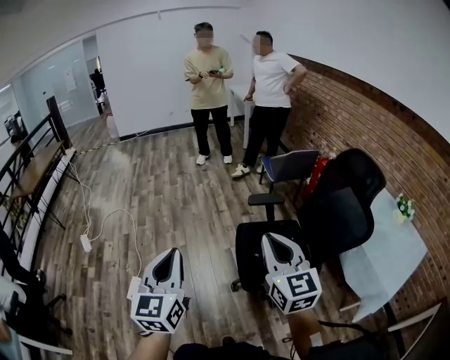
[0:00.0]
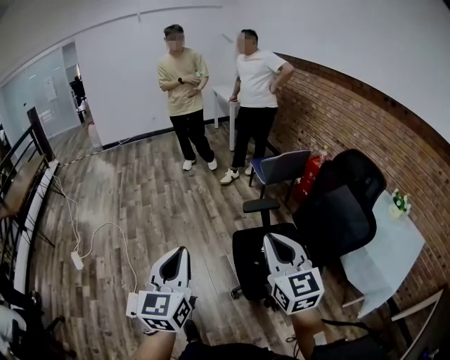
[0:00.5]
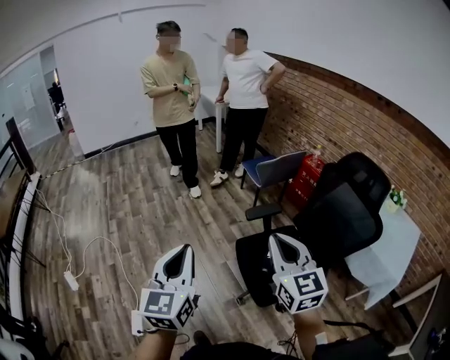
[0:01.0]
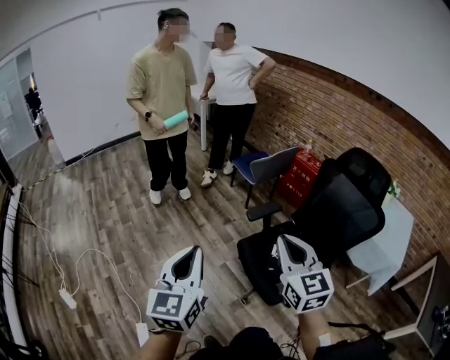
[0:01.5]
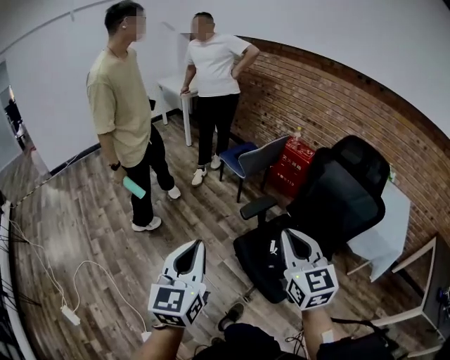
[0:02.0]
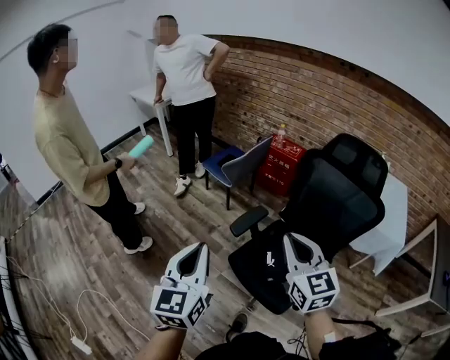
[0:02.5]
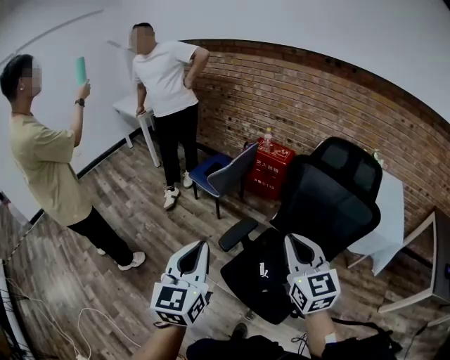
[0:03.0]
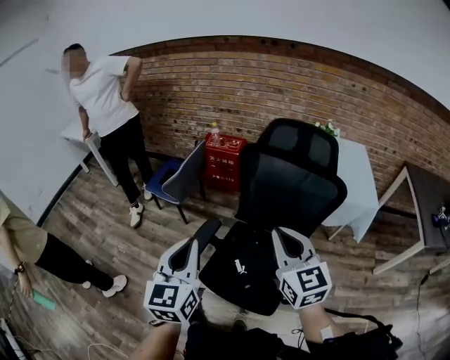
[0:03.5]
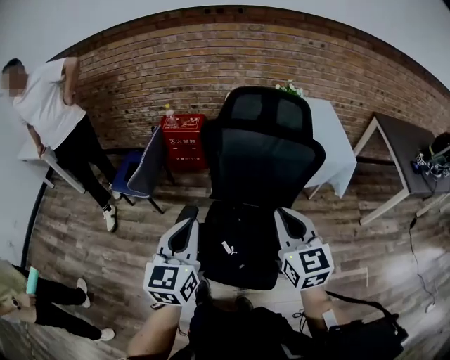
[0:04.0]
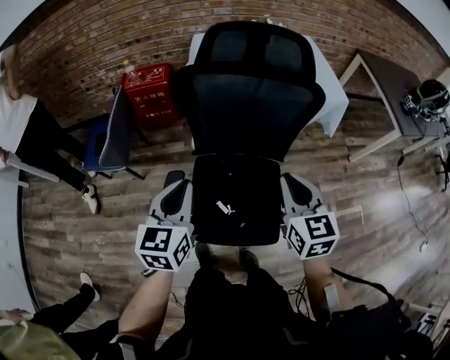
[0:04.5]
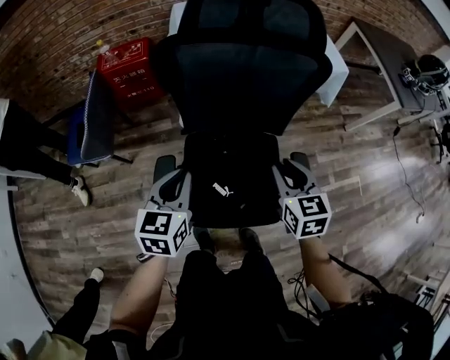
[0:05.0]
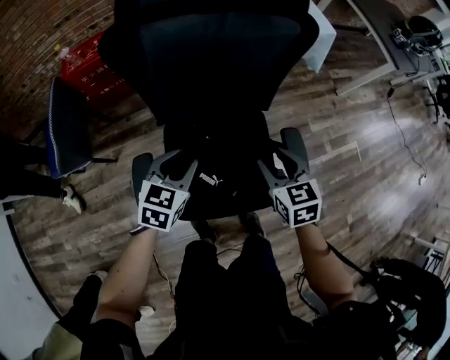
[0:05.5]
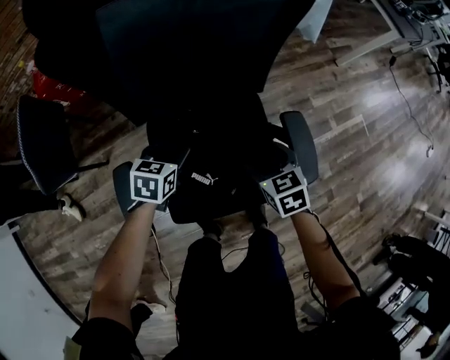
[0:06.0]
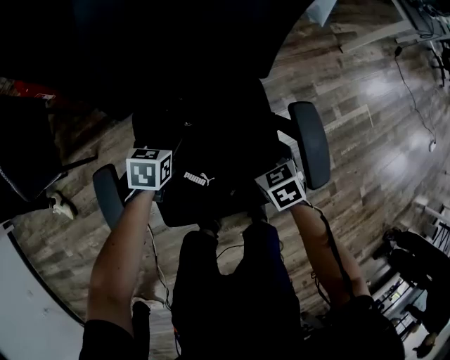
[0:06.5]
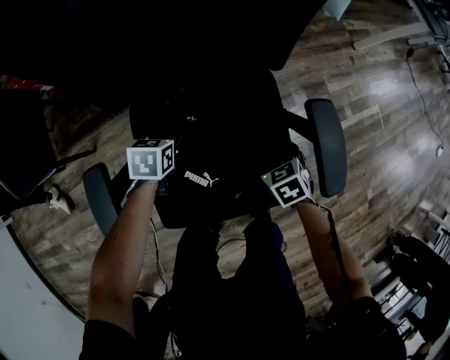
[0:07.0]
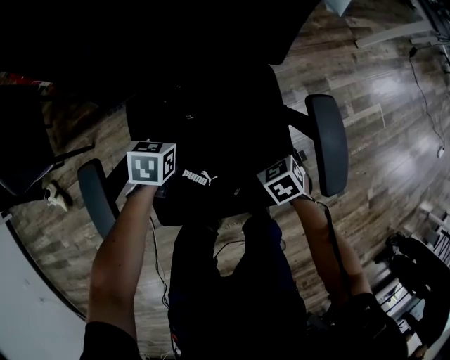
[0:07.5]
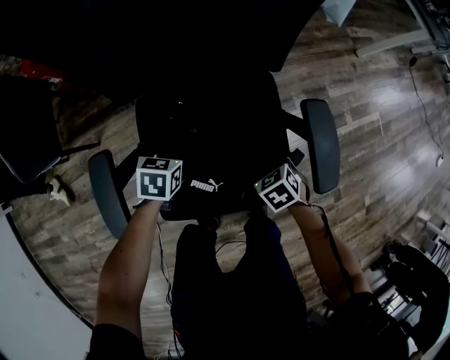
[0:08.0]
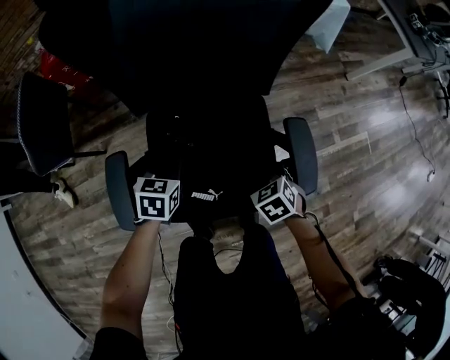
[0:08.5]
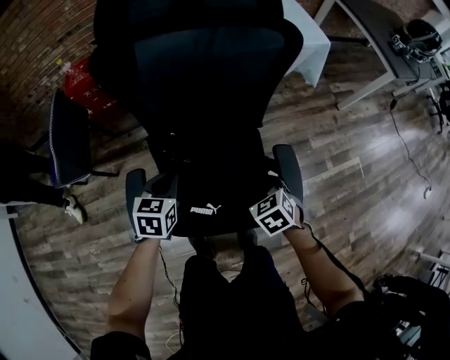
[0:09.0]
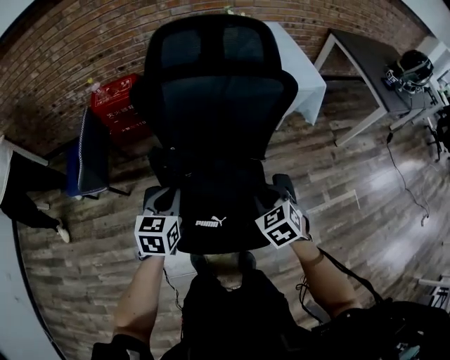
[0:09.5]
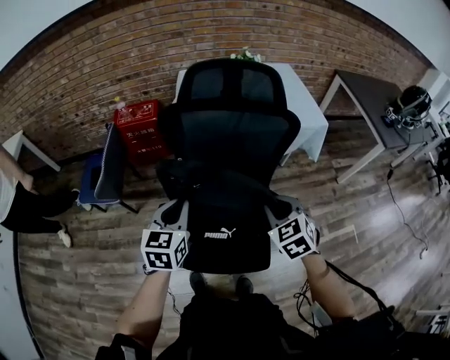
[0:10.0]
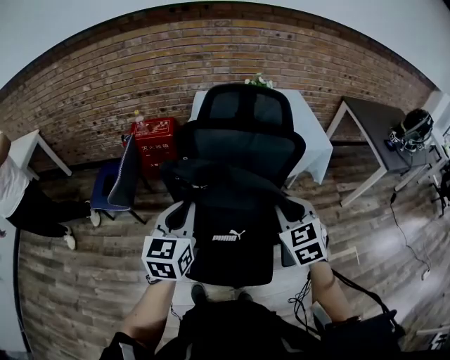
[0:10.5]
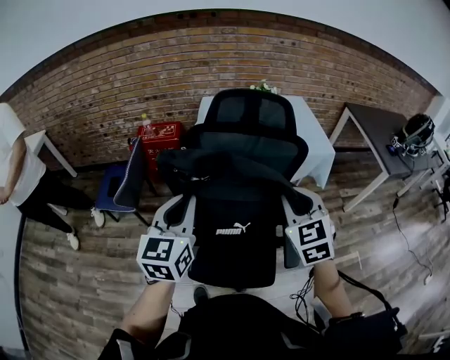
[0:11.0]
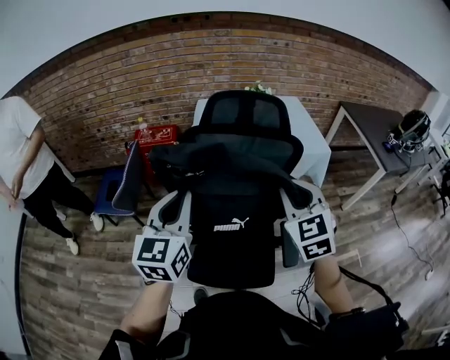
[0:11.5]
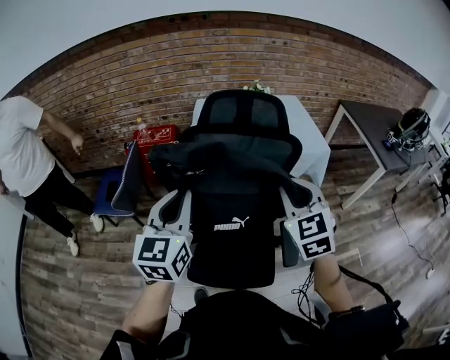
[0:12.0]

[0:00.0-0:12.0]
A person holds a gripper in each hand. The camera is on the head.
0:00.0 to 0:02.0: The left gripper shifts by about 30 cm, and turns by about 30 degrees. The right gripper changes place by about 20 cm, and swivels some 30 degrees.
0:02.0 to 0:04.0: The right gripper changes place by roughly 25 cm, and swivels about 40 degrees. Meanwhile the left gripper moves roughly 40 cm, and turns by approximately 40 degrees.
0:04.0 to 0:06.0: Both grippers travel together downward, some 40 cm. The left gripper tips its fingers downward by some 40 degrees, and opens its fingers. The right gripper angles its fingers downward, by roughly 40 degrees, and opens up.
0:06.0 to 0:08.0: The left gripper is displaced downward by some 10 cm, and closes its fingers, while the right gripper travels downward by some 20 cm, changes its angle by approximately 20 degrees, and closes its fingers.
0:08.0 to 0:10.0: The two grippers go approximately 40 cm upward. The left gripper tilts its fingers about 40 degrees upward; the right gripper turns by roughly 40 degrees.
0:10.0 to 0:12.0: The two grippers go some 20 cm upward. The right gripper turns by roughly 20 degrees. The left gripper swivels roughly 20 degrees.

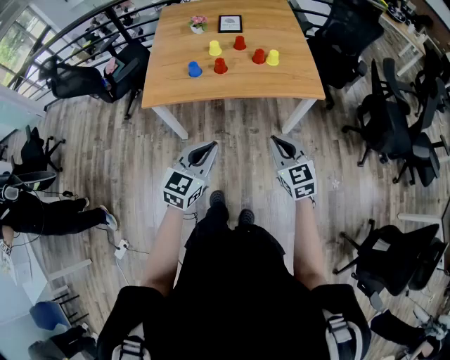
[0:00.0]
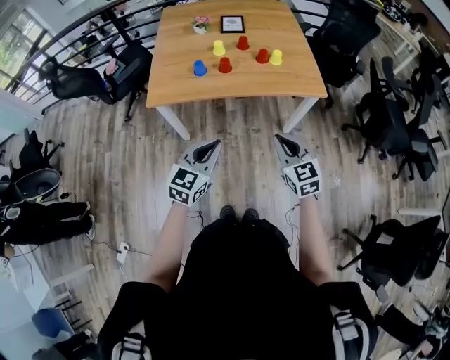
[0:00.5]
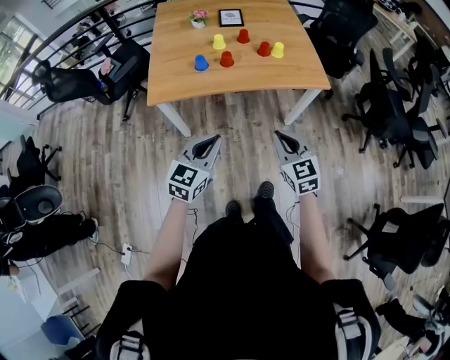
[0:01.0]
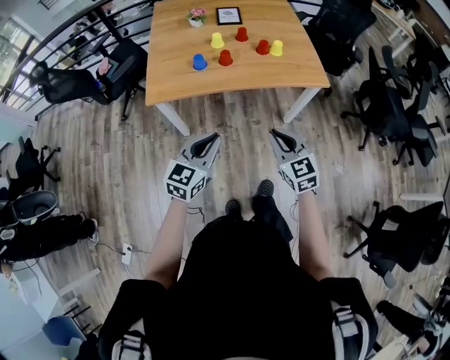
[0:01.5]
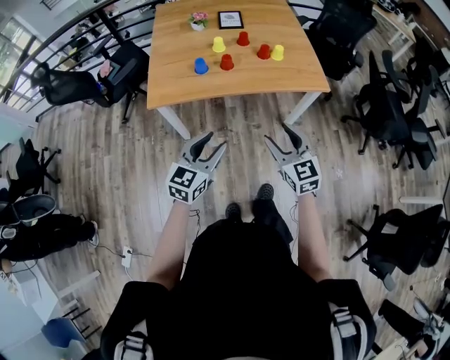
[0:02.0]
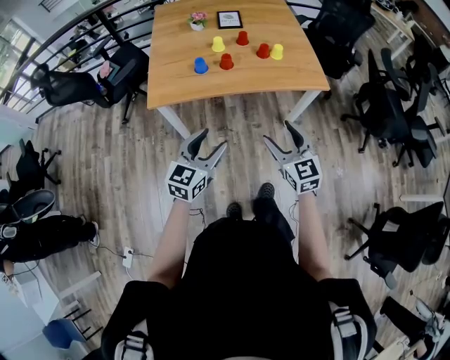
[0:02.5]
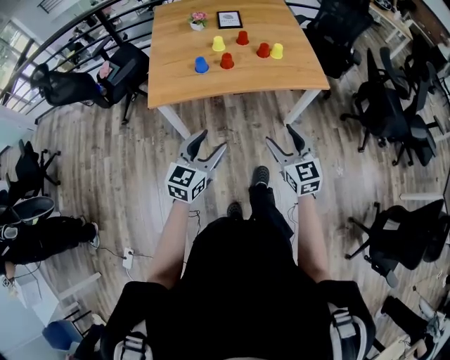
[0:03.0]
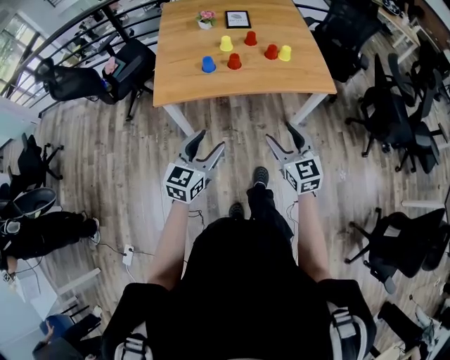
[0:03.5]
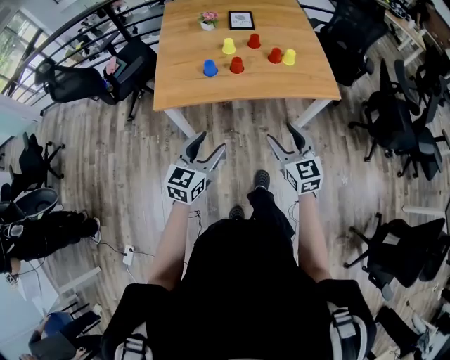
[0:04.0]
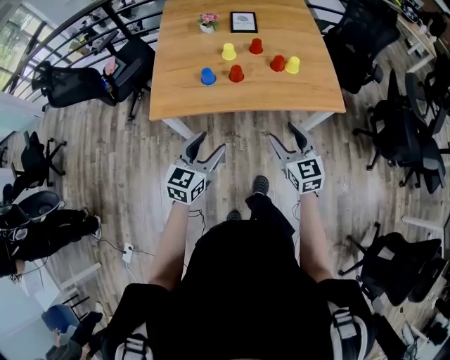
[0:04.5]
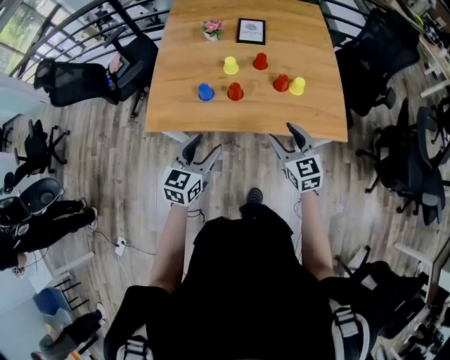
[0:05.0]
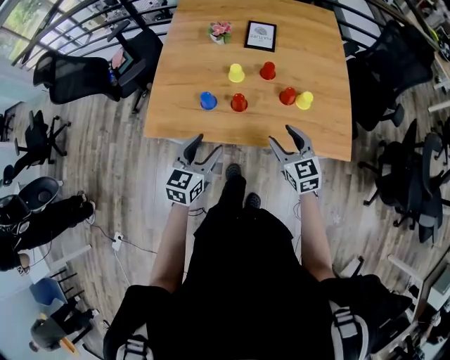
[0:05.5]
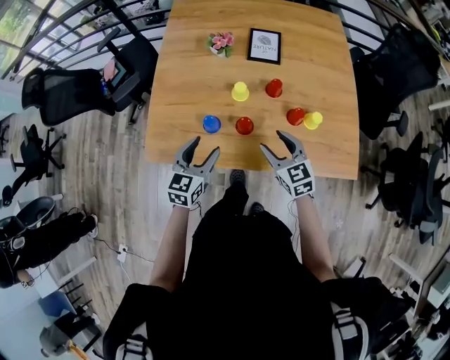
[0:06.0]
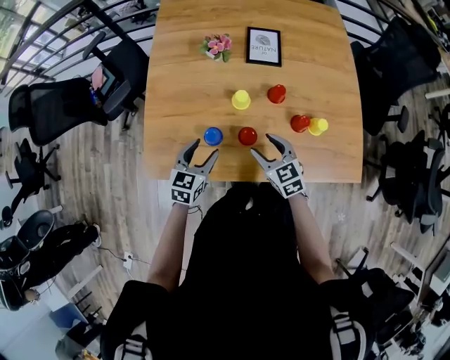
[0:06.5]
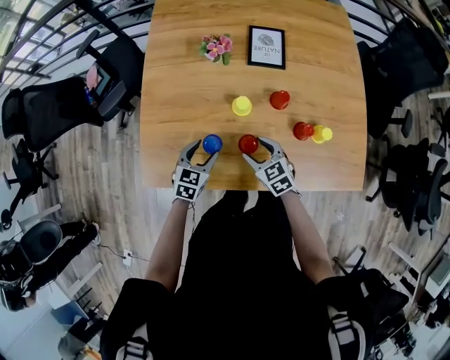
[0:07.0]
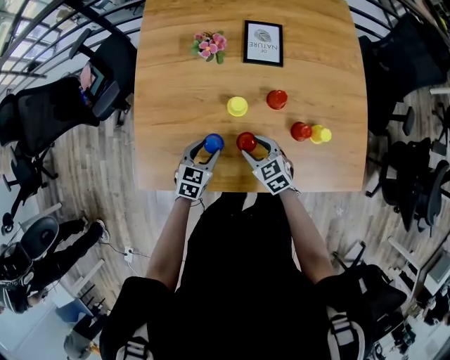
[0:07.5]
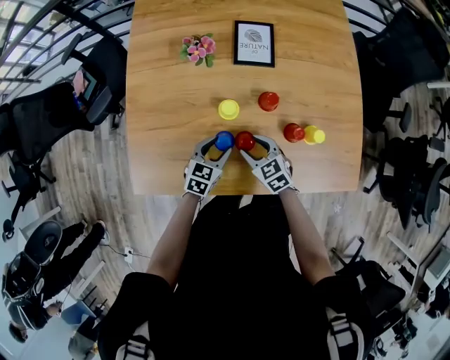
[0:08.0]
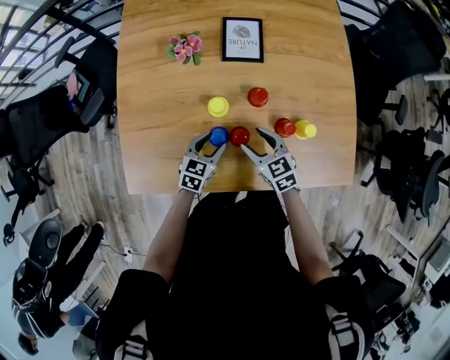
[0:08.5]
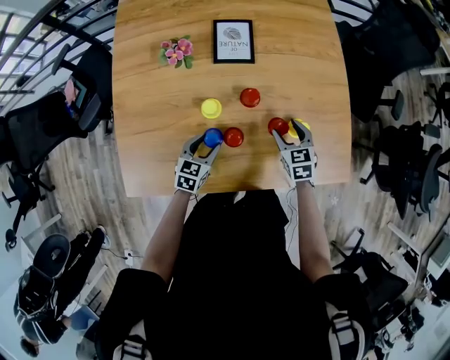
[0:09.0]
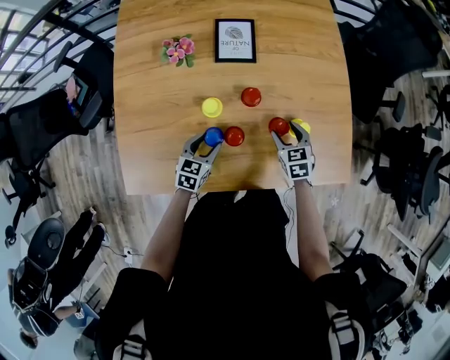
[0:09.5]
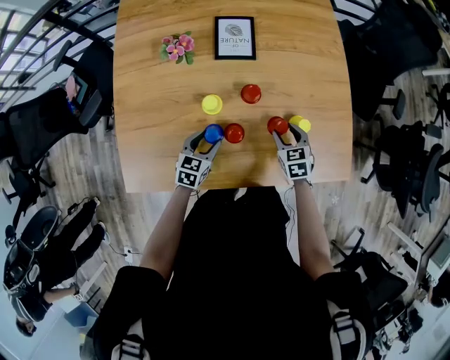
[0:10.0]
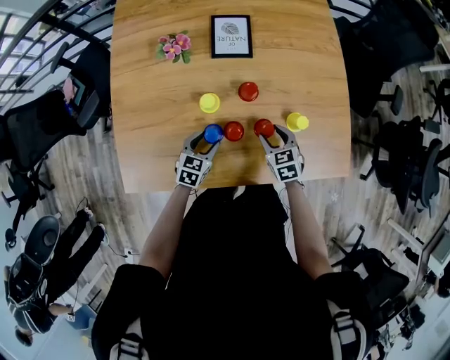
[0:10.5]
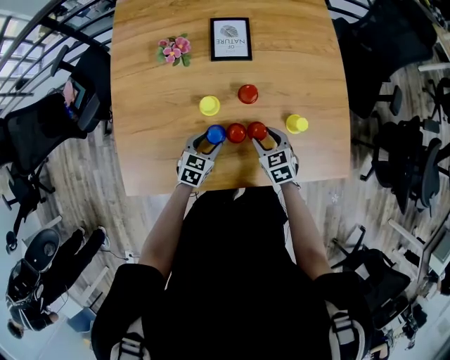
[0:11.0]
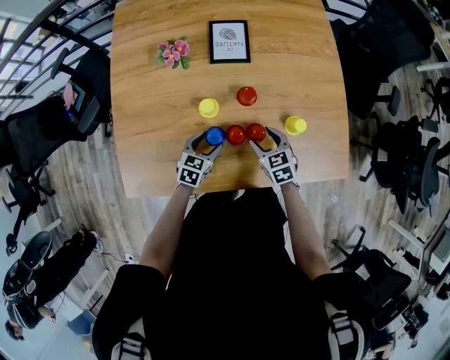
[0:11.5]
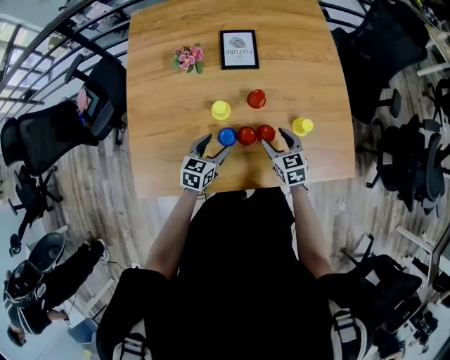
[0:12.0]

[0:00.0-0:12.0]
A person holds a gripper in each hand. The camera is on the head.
0:00.0 to 0:02.0: Both grippers move to the left, roughly 10 cm. The right gripper opens. The left gripper opens.
0:02.0 to 0:04.0: The left gripper shifts by roughly 5 cm.
0:04.0 to 0:06.0: The grippers both shift forward by roughly 35 cm.
0:06.0 to 0:08.0: The left gripper goes roughly 20 cm downward, forward and to the right, and swivels about 20 degrees; the right gripper travels downward and forward by roughly 15 cm.
0:08.0 to 0:10.0: The right gripper is displaced to the right by roughly 20 cm, and rotates about 30 degrees.
0:10.0 to 0:12.0: The right gripper heads to the left, covering roughly 5 cm.

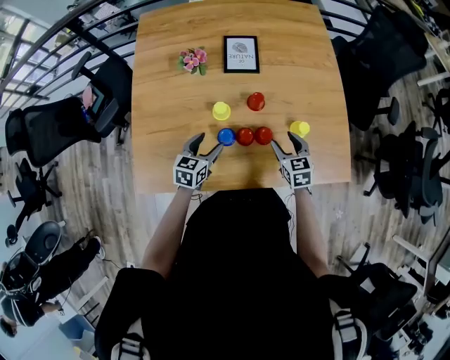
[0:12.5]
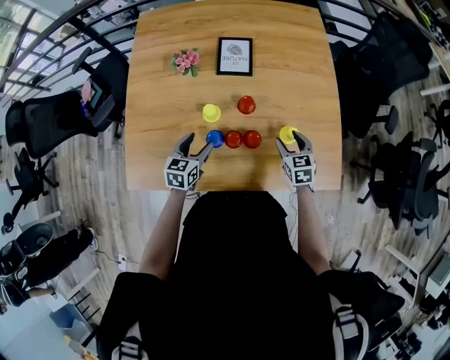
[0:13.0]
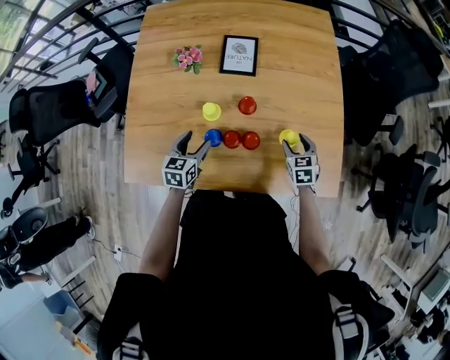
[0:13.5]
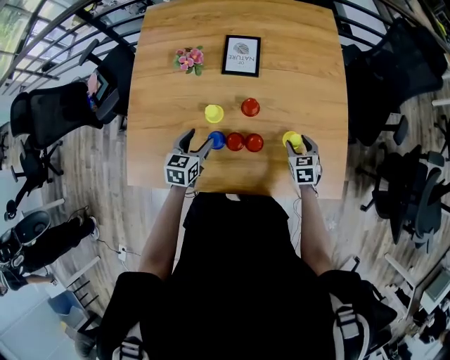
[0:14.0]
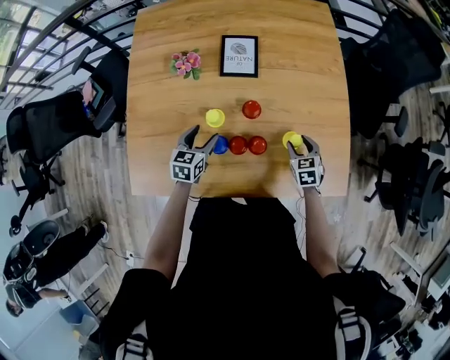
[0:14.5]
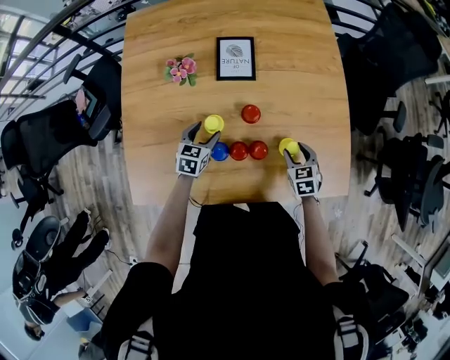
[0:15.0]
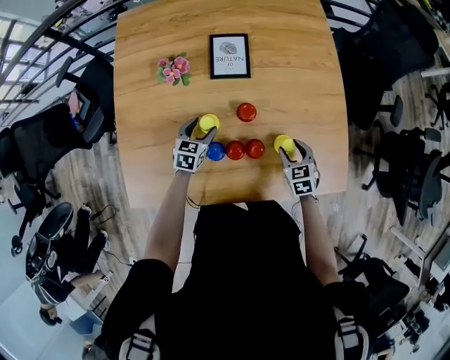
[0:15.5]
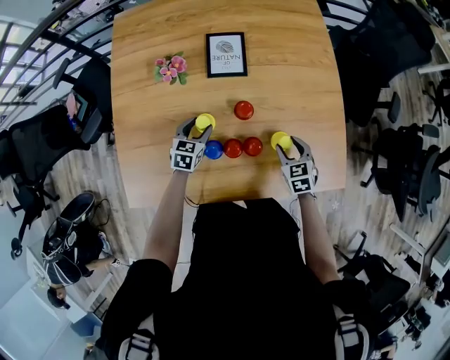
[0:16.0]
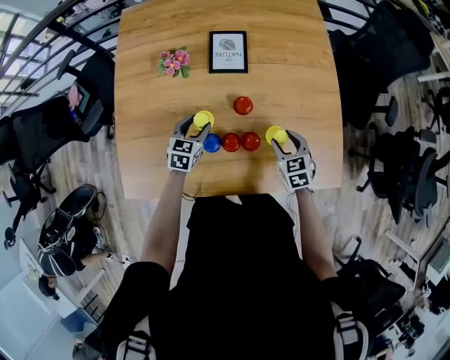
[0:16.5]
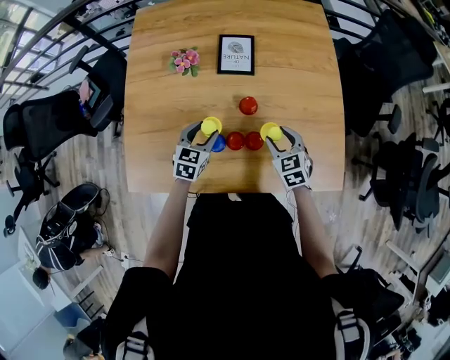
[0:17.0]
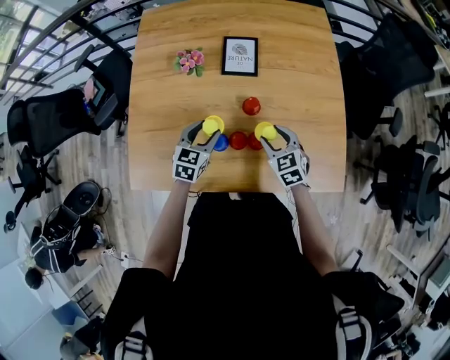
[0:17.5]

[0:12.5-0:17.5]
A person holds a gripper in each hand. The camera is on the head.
0:12.5 to 0:15.0: The right gripper is displaced to the right and downward by roughly 10 cm; the left gripper is displaced forward by roughly 10 cm.
0:15.0 to 0:17.5: The right gripper moves to the left and upward, approximately 15 cm, and turns by about 20 degrees, while the left gripper goes about 10 cm upward and backward.
